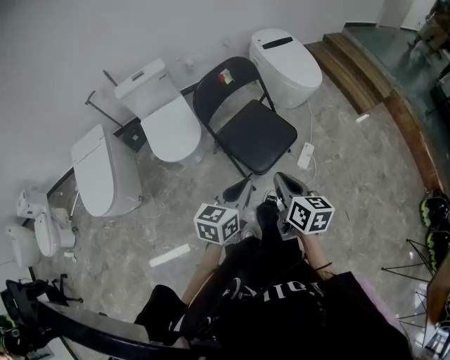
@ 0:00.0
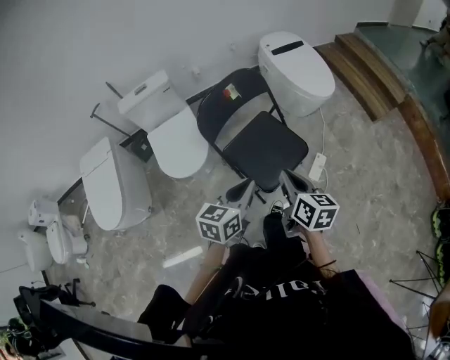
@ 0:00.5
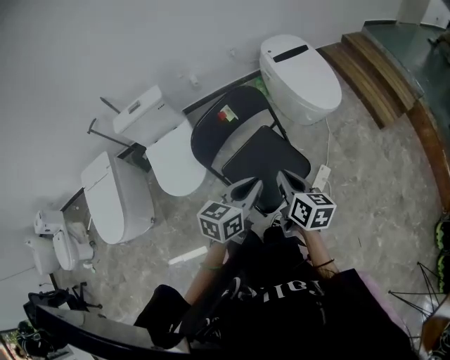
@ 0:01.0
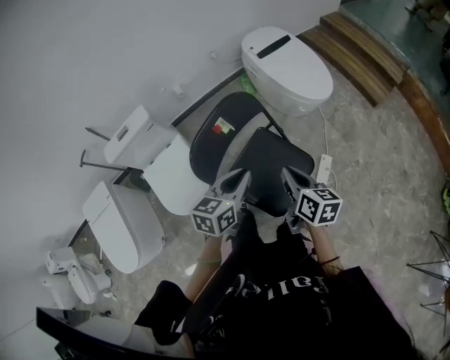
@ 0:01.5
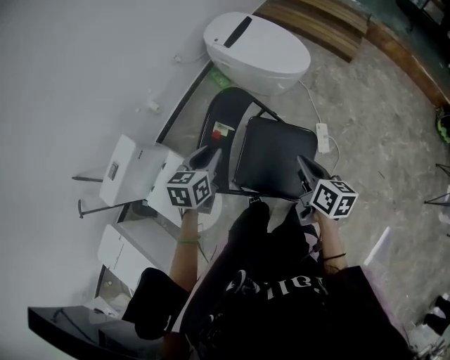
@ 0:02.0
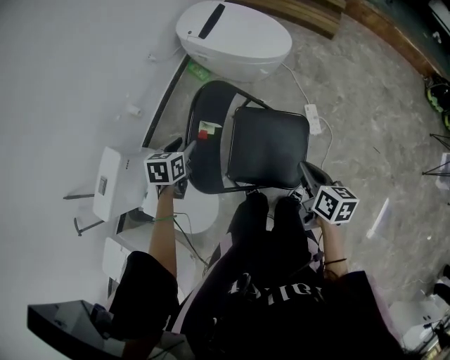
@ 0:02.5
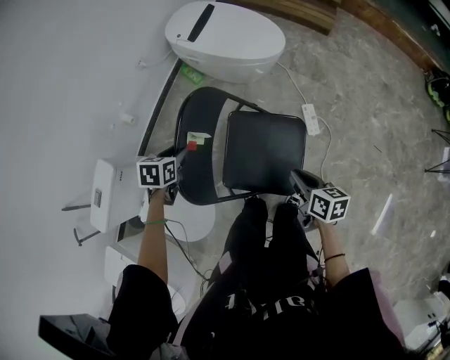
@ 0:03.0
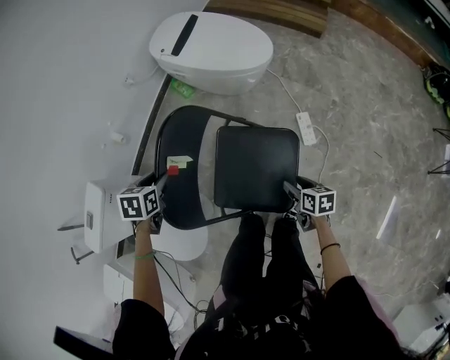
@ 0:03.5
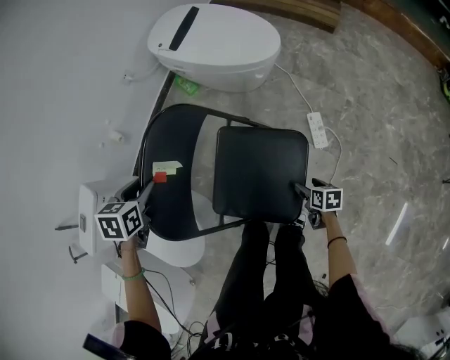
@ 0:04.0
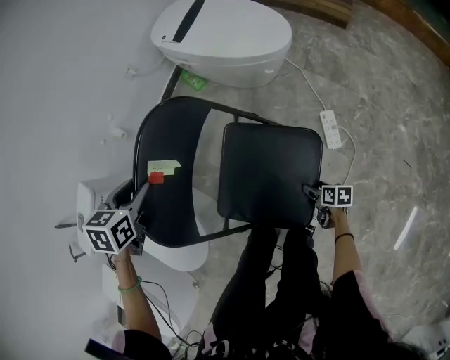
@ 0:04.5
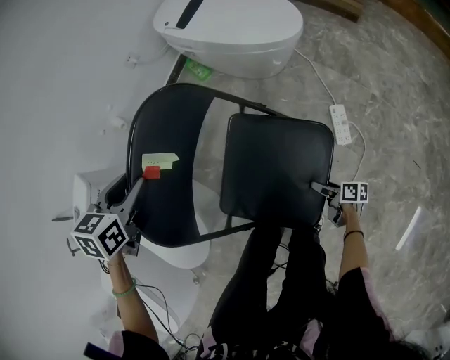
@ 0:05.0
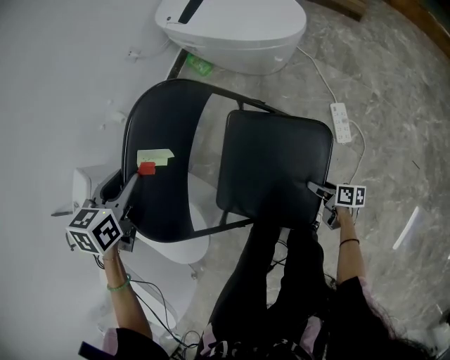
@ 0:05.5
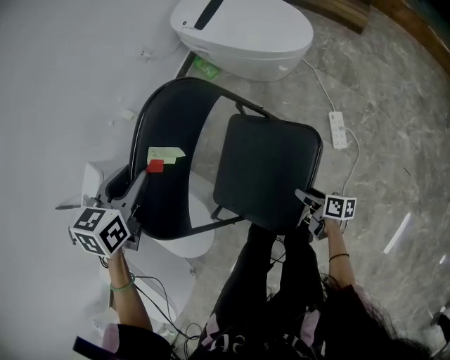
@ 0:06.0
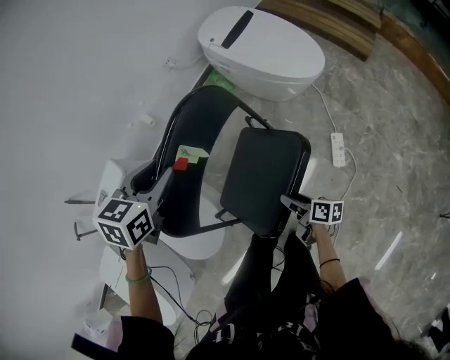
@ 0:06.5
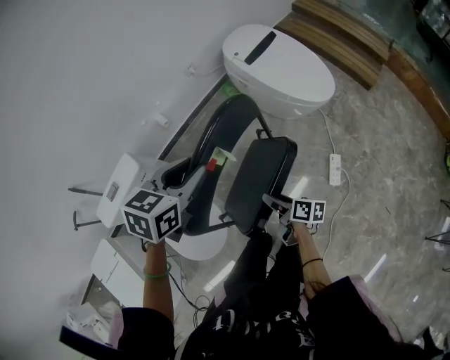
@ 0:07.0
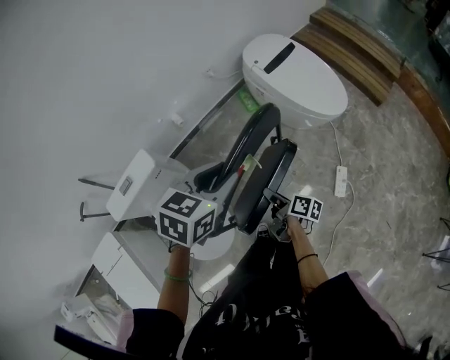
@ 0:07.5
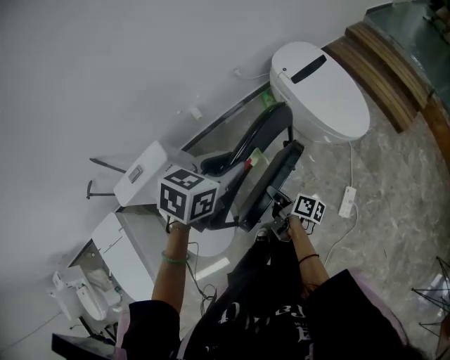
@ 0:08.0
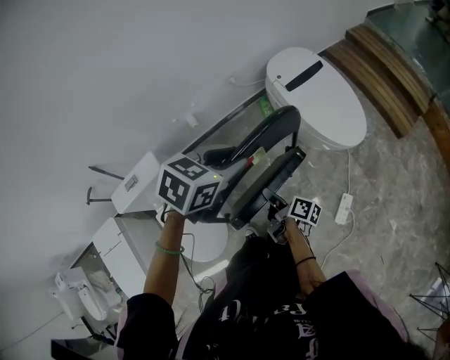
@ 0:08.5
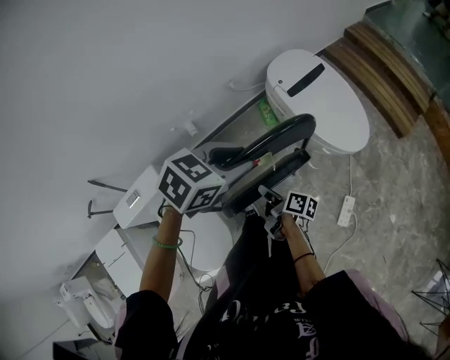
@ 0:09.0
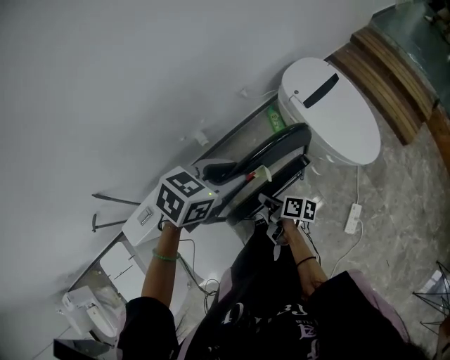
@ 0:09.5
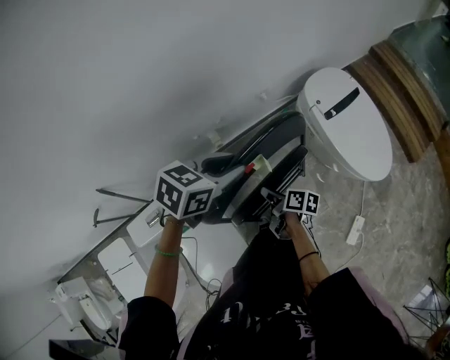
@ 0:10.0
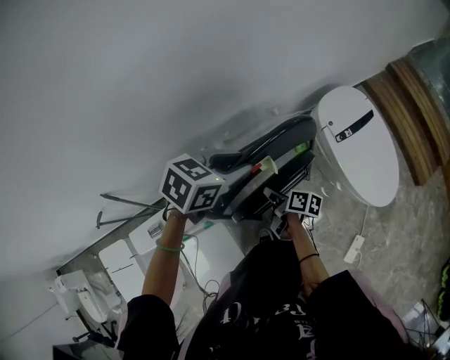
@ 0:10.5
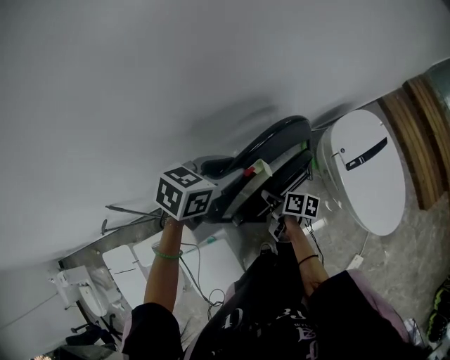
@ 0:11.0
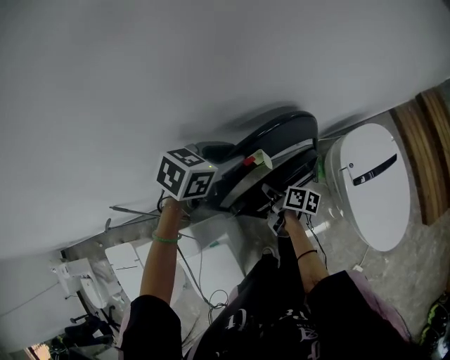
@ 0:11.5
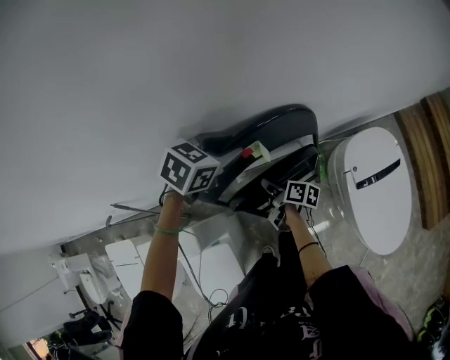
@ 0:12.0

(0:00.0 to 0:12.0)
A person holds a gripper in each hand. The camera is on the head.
0:00.0 - 0:02.0: Both grippers travel together forward, approximately 40 cm. The left gripper swivels roughly 30 degrees, while the right gripper turns by approximately 30 degrees.
0:02.0 - 0:04.0: The right gripper moves downward, roughly 40 cm, swivels about 30 degrees, and opens up. Meanwhile the left gripper heads downward and forward, covering roughly 15 cm, and swivels about 30 degrees.
0:04.0 - 0:06.0: The left gripper moves upward, about 10 cm; the right gripper is displaced to the left by roughly 10 cm, travels downward and back again, some 10 cm each way, and rotates roughly 30 degrees.
0:06.0 - 0:08.0: The right gripper moves upward, to the left and forward, approximately 40 cm, and closes its fingers. Meanwhile the left gripper is displaced upward by approximately 15 cm.
0:08.0 - 0:10.0: The two grippers go about 30 cm forward and to the left.
0:10.0 - 0:12.0: Both grippers travel together forward, about 30 cm.

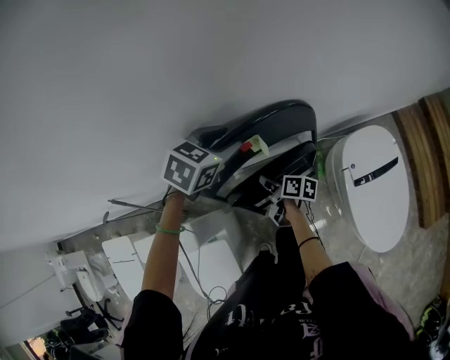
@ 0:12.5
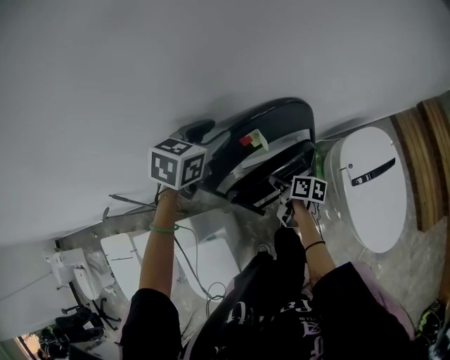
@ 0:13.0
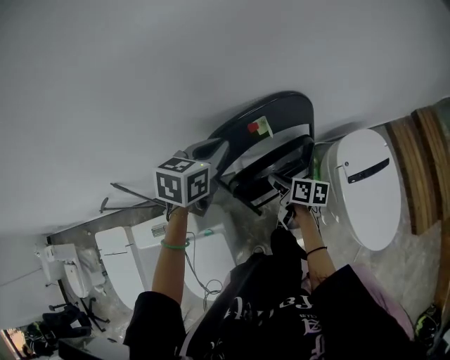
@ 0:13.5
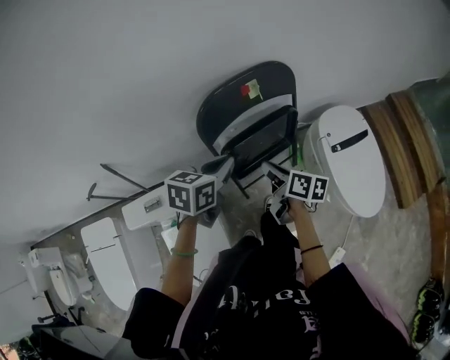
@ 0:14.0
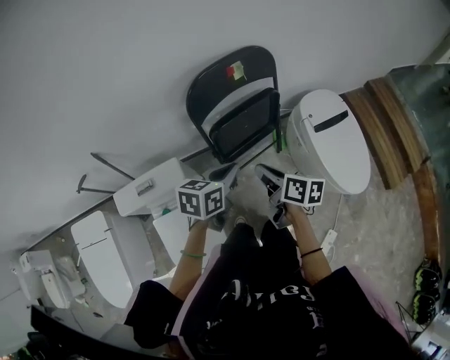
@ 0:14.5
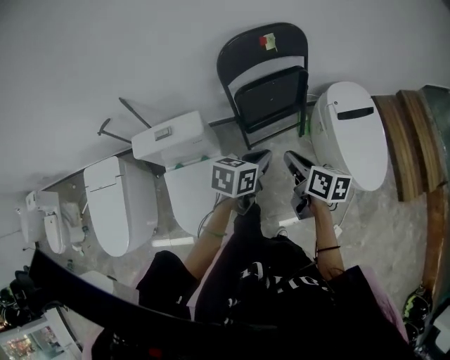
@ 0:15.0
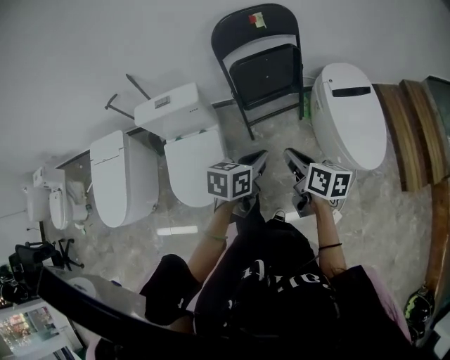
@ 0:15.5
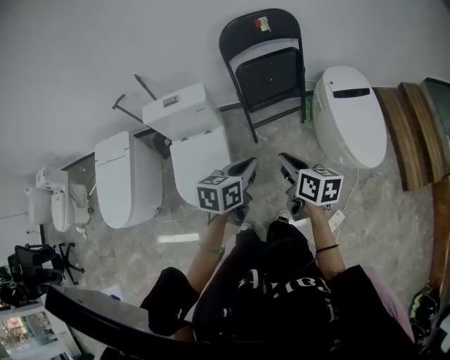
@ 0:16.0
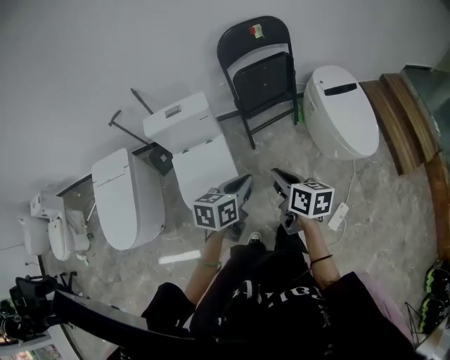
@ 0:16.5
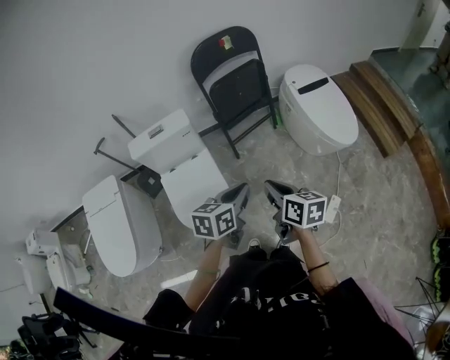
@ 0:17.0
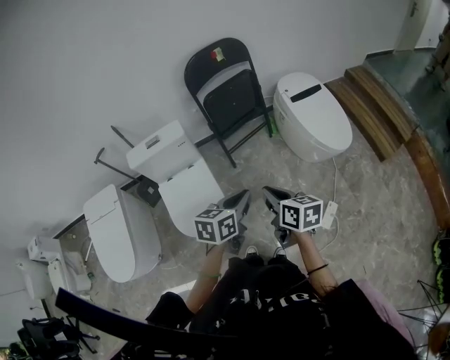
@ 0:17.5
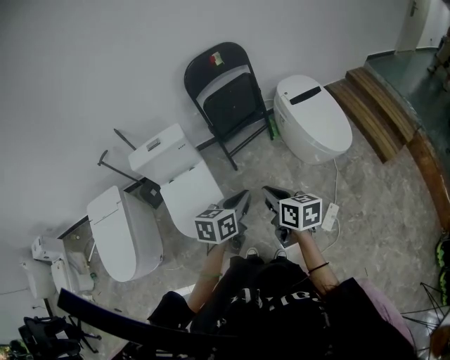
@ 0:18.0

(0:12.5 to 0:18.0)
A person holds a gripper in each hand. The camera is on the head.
0:12.5 - 0:14.5: The right gripper shifts about 40 cm backward and upward, and changes its angle by approximately 30 degrees. The left gripper heads backward, covering about 40 cm, swivels about 30 degrees, and closes.
0:14.5 - 0:16.0: Both grippers move backward, approximately 30 cm.
0:16.0 - 0:18.0: Both grippers travel together backward, about 15 cm.

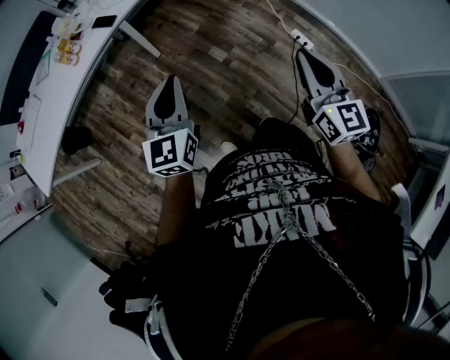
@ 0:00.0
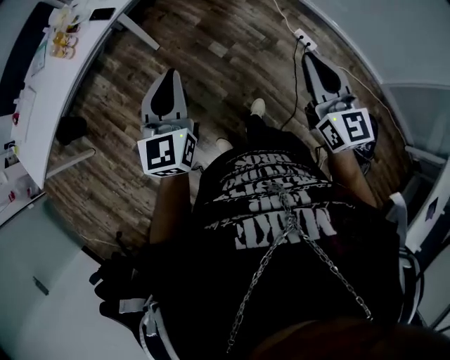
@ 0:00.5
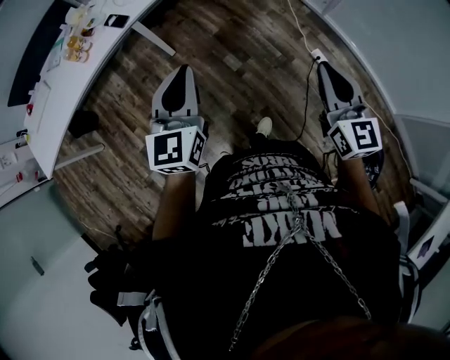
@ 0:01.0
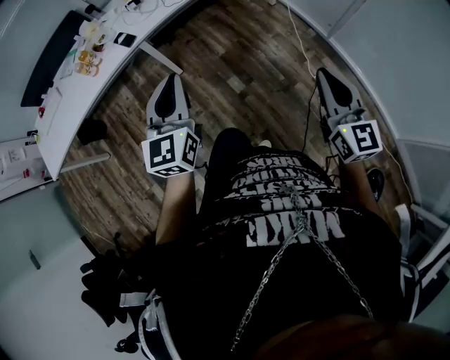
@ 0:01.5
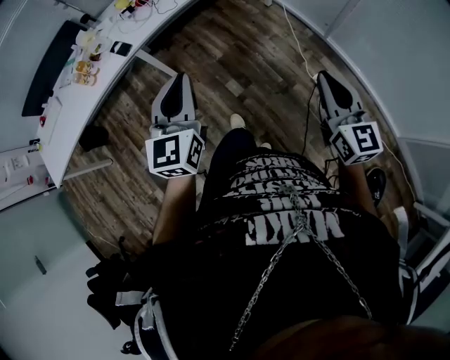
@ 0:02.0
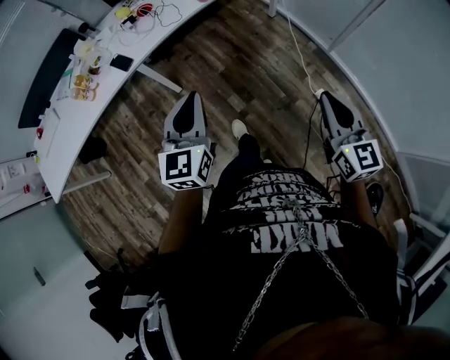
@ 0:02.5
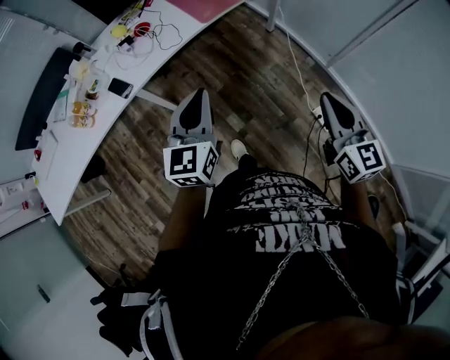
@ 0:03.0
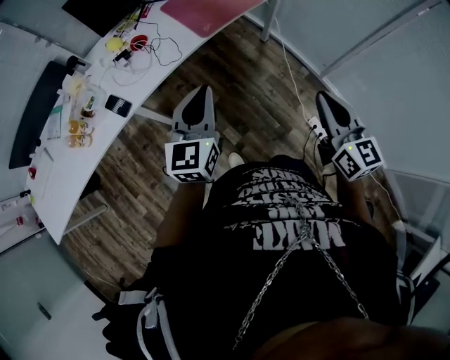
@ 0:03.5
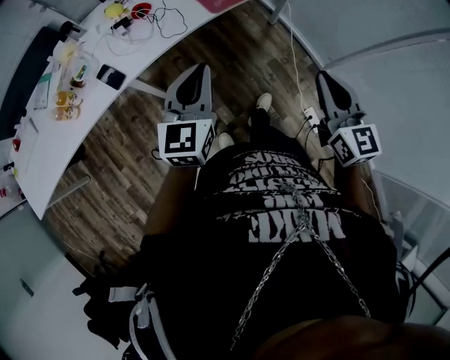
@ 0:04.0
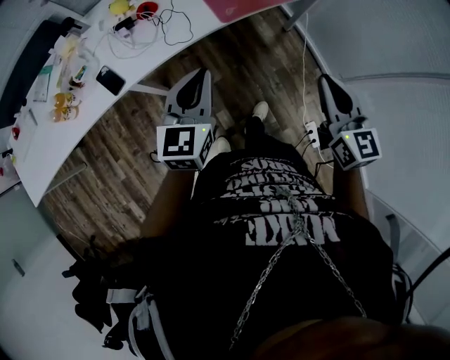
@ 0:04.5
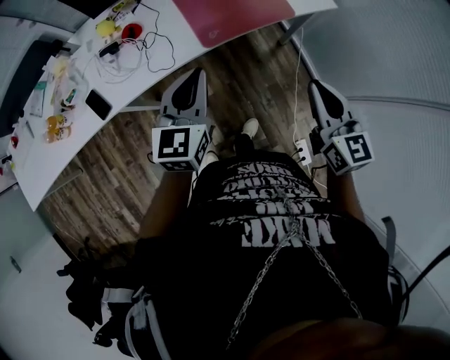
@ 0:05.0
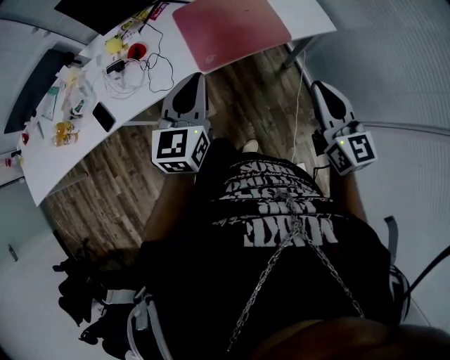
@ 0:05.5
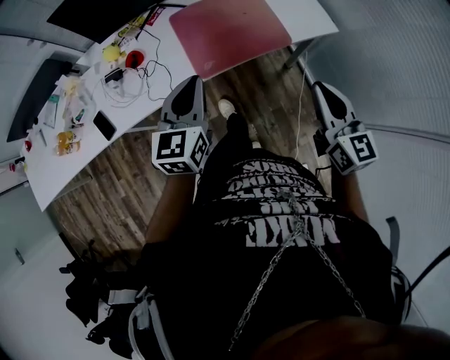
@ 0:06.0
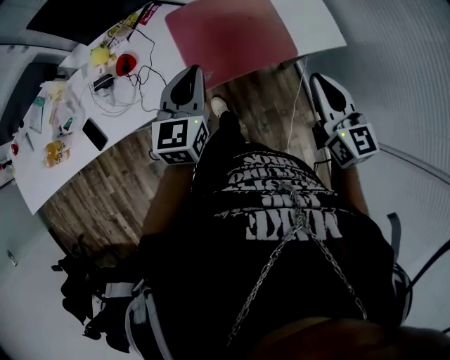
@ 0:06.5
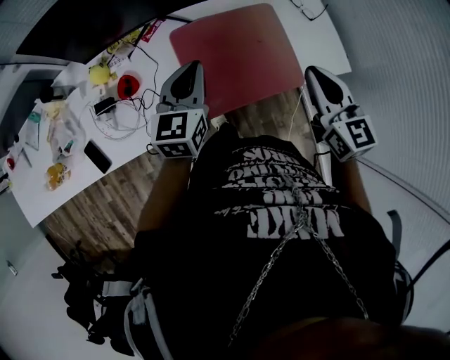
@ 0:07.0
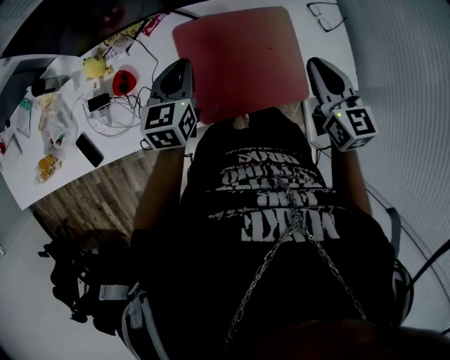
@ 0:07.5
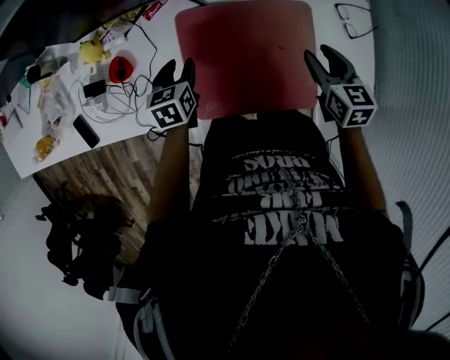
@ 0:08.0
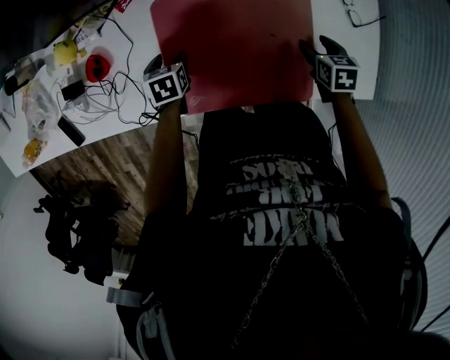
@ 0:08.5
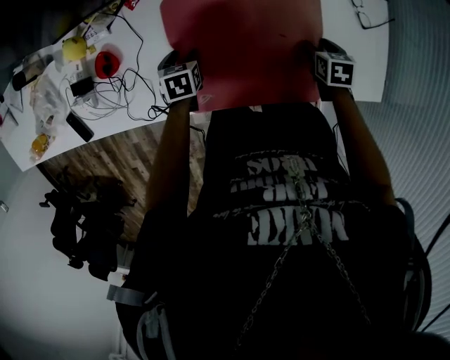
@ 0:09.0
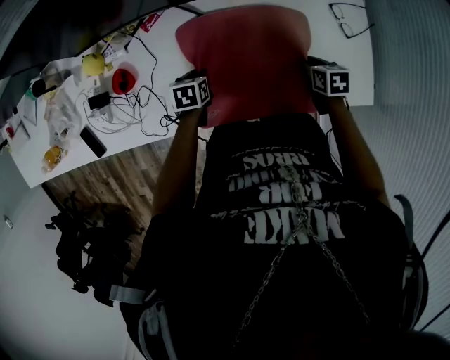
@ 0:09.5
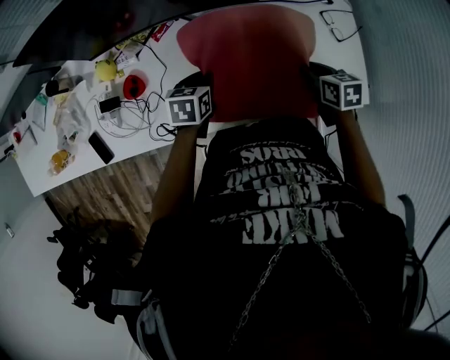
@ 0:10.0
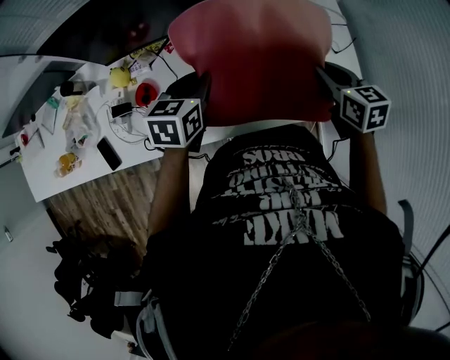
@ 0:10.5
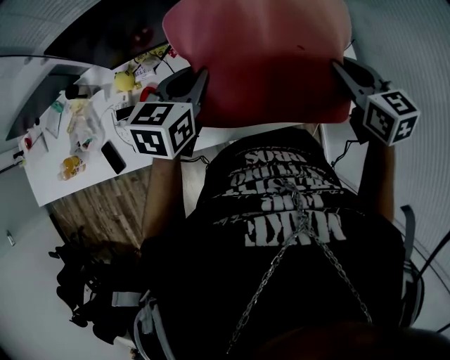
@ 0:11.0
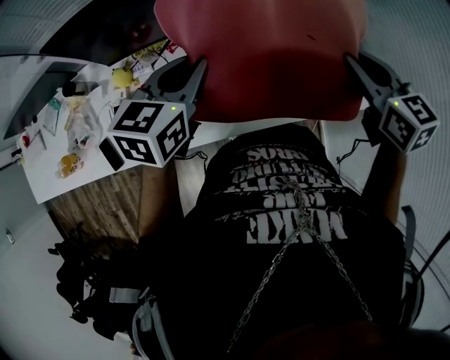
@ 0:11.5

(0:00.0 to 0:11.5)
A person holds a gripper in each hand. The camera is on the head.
0:00.0 - 0:02.0: The right gripper travels to the right and forward by some 30 cm. Meanwhile the left gripper travels forward and to the right by roughly 25 cm.
0:02.0 - 0:04.0: The two grippers go approximately 35 cm forward.
0:04.0 - 0:06.0: The grippers both shift forward and to the right by some 35 cm.
0:06.0 - 0:07.5: The left gripper heads forward and downward, covering some 35 cm, while the right gripper shifts approximately 40 cm forward, and rotates about 20 degrees.
0:07.5 - 0:09.5: Both grippers move downward, about 25 cm. The left gripper tilts its fingers roughly 30 degrees downward, and opens, then closes once more; the right gripper angles its fingers downward, by some 40 degrees, and opens, then closes again.
0:09.5 - 0:11.5: Both grippers move upward, some 40 cm. The right gripper swivels roughly 40 degrees. The left gripper points its fingers approximately 30 degrees further upward.
